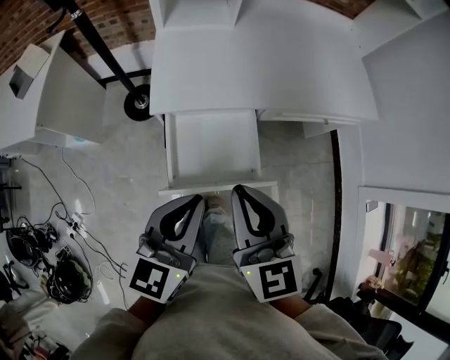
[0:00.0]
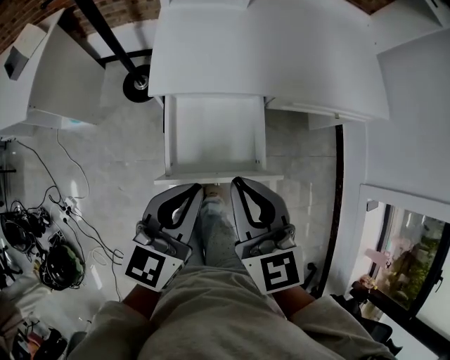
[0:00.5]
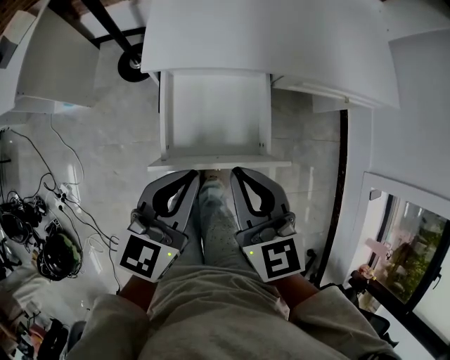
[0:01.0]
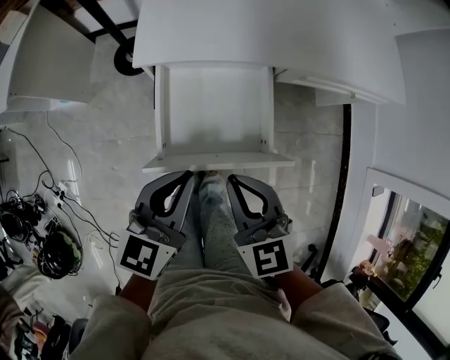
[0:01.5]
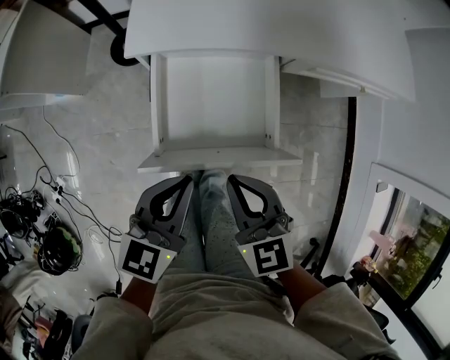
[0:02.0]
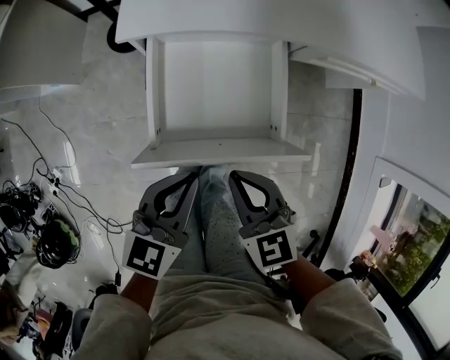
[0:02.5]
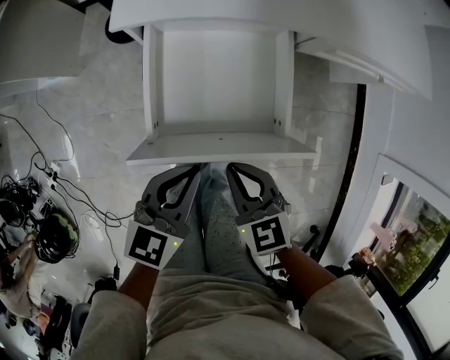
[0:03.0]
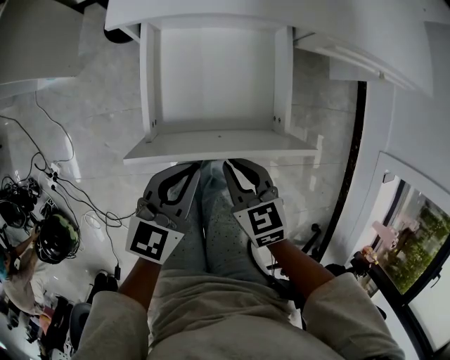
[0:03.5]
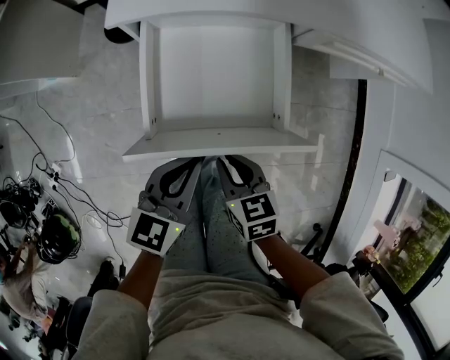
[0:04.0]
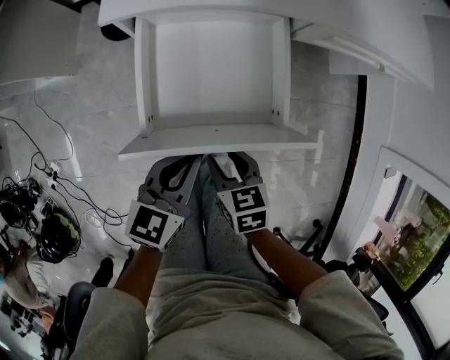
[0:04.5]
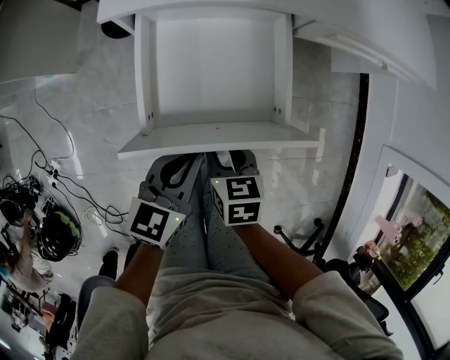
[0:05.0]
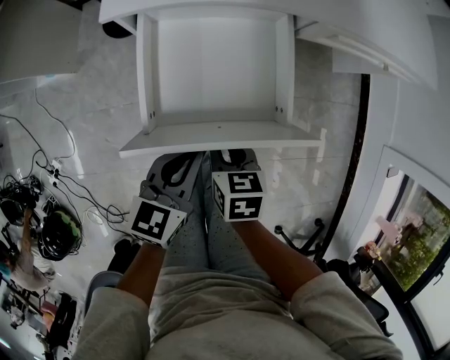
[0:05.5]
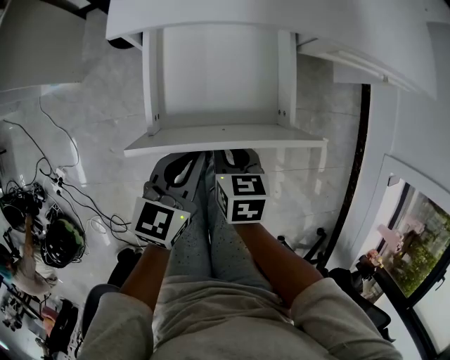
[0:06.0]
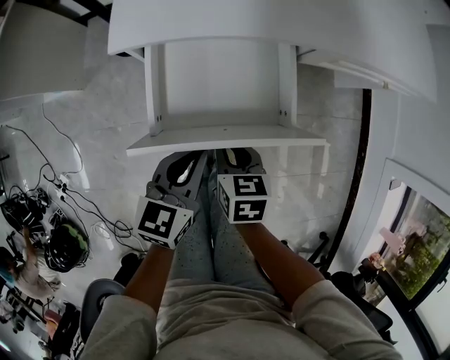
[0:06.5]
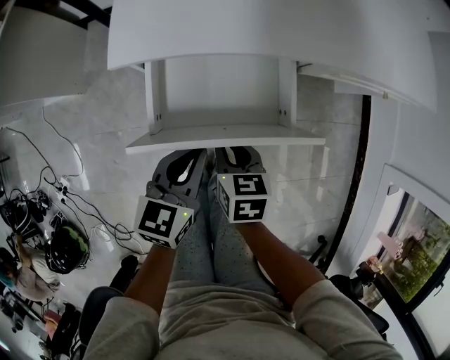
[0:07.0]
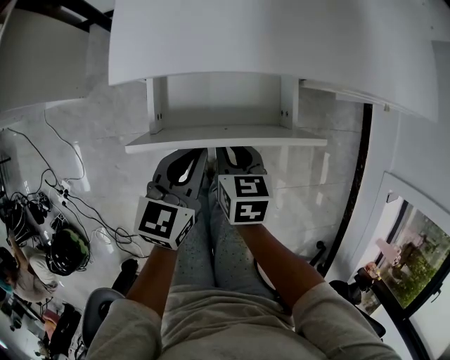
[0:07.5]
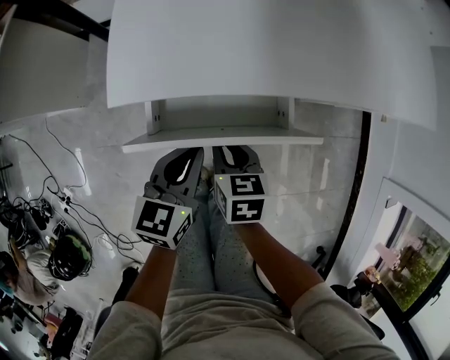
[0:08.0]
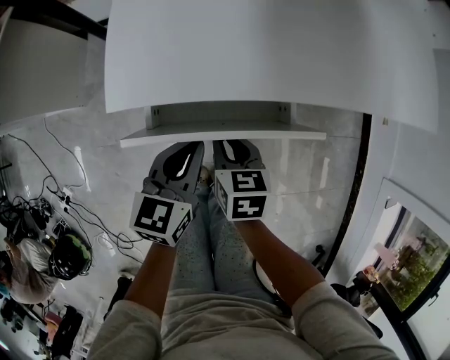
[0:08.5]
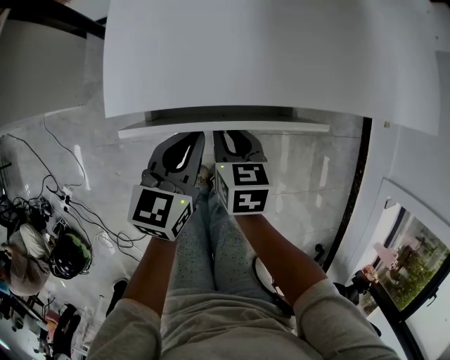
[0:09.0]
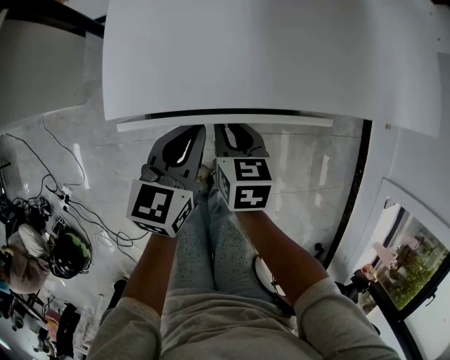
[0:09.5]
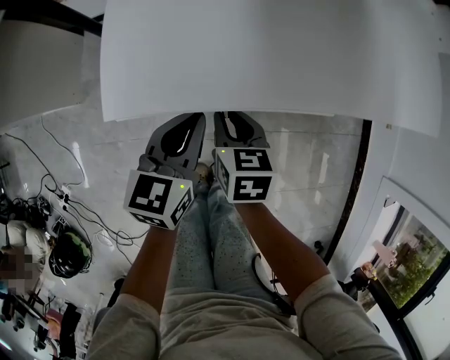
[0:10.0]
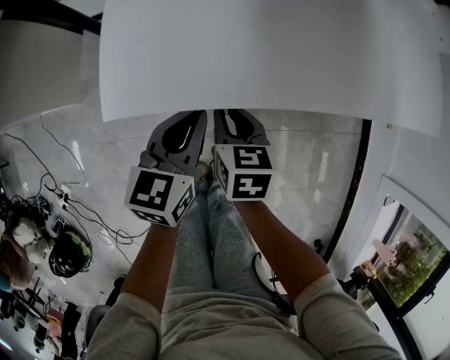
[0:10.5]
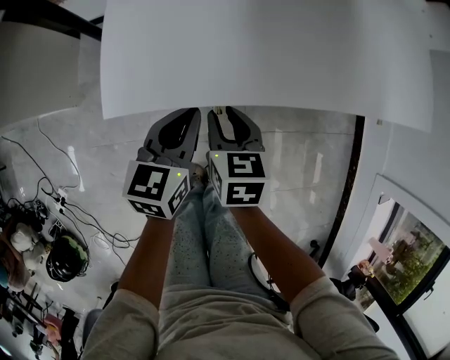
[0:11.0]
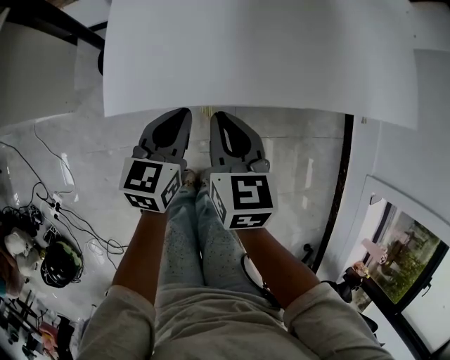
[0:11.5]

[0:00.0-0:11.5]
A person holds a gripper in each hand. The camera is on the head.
0:00.0 to 0:02.0: Both grippers move downward, about 20 cm. The right gripper changes its angle by approximately 30 degrees.
0:02.0 to 0:04.0: The left gripper is displaced downward by roughly 10 cm, while the right gripper is displaced downward by approximately 15 cm, and turns by some 30 degrees.
0:04.0 to 0:06.0: The right gripper is displaced forward by some 5 cm.
0:06.0 to 0:07.5: The two grippers go some 10 cm forward.
0:07.5 to 0:09.5: The two grippers go about 10 cm forward.
0:09.5 to 0:11.5: The right gripper is displaced upward by approximately 10 cm.

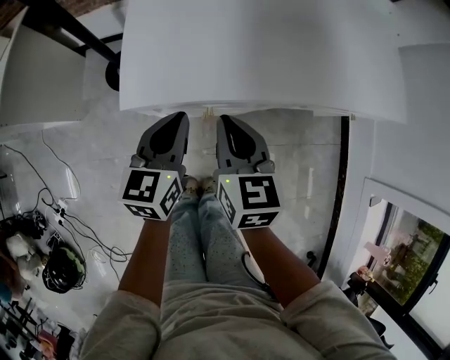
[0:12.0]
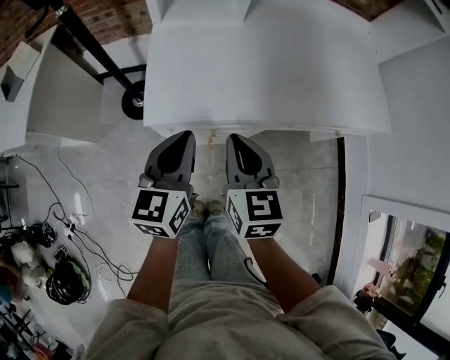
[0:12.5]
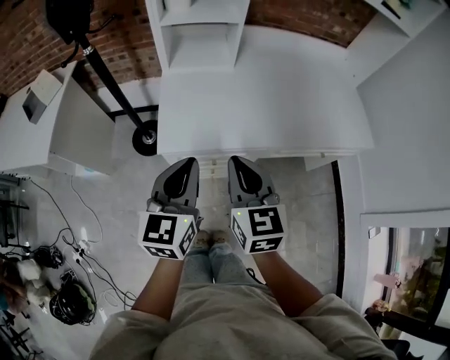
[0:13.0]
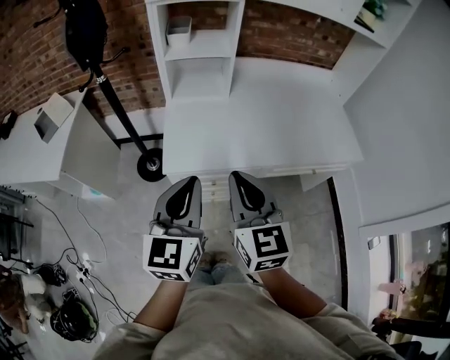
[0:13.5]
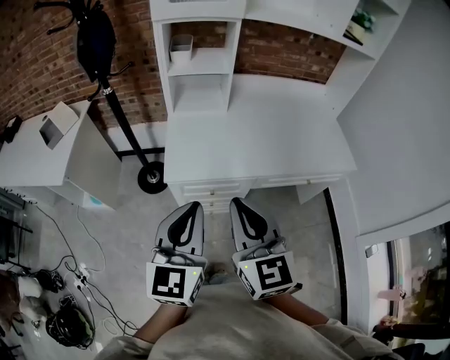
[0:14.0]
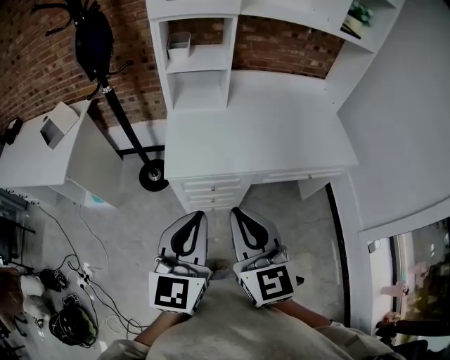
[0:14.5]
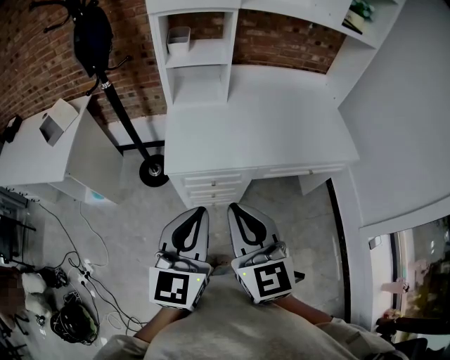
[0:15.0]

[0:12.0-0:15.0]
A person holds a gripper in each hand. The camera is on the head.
0:12.0 to 0:13.5: The right gripper shifts approximately 30 cm upward, and changes its angle by roughly 20 degrees; the left gripper travels upward and backward by about 35 cm, and turns by roughly 20 degrees.
0:13.5 to 0:15.0: The grippers both shift backward by about 10 cm.

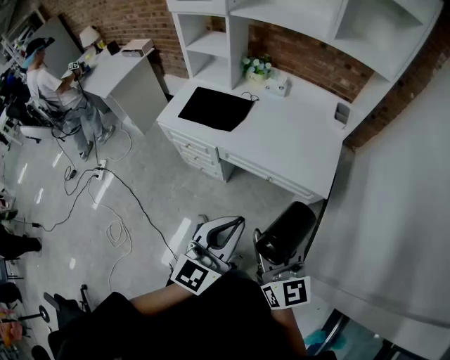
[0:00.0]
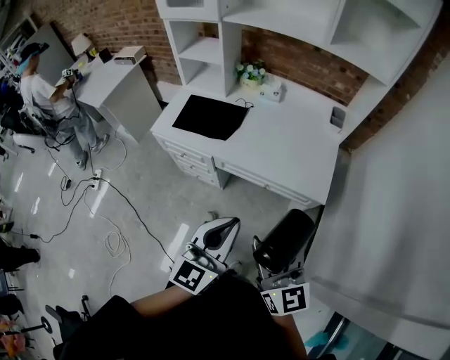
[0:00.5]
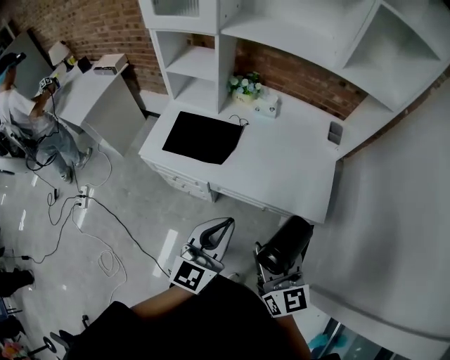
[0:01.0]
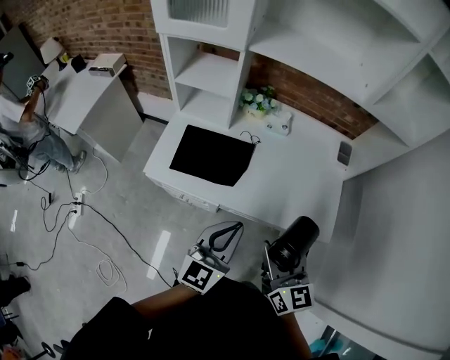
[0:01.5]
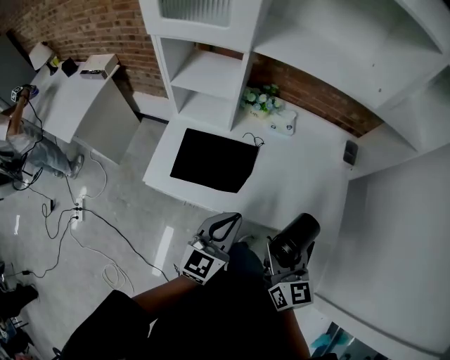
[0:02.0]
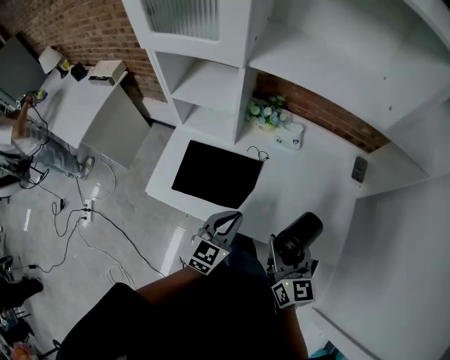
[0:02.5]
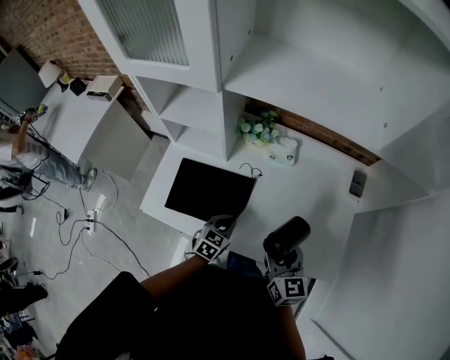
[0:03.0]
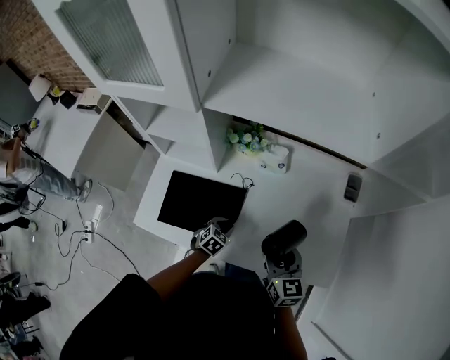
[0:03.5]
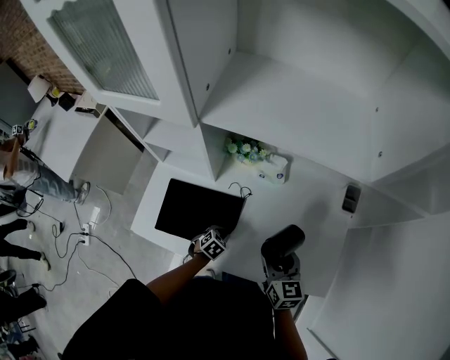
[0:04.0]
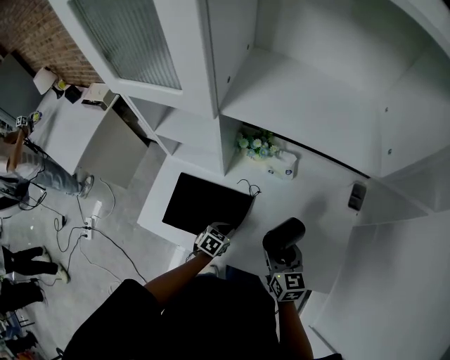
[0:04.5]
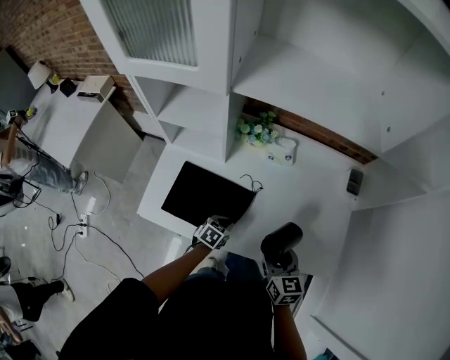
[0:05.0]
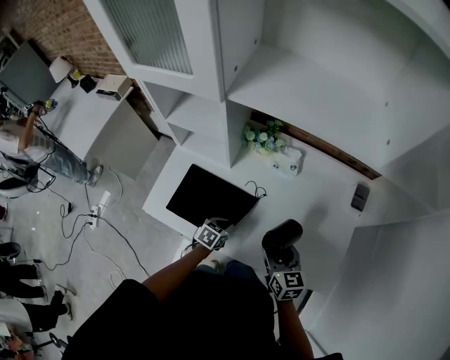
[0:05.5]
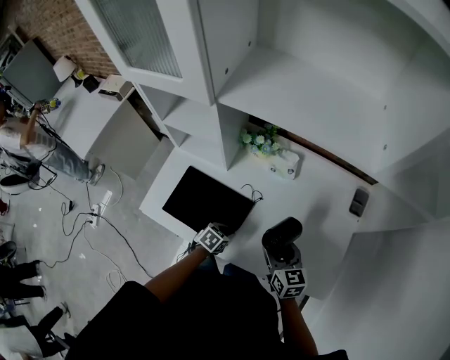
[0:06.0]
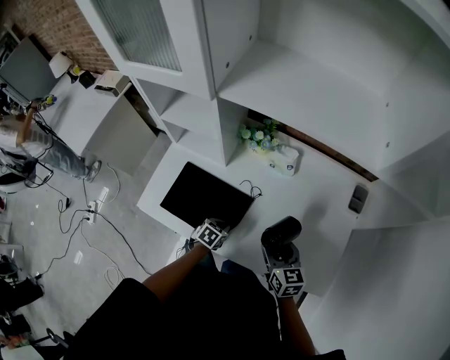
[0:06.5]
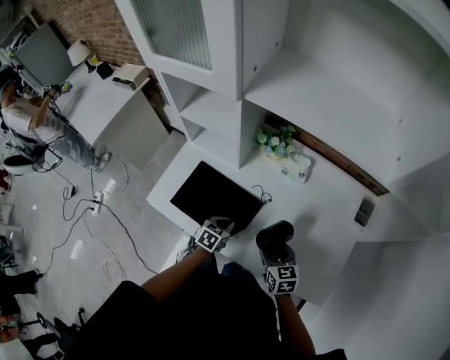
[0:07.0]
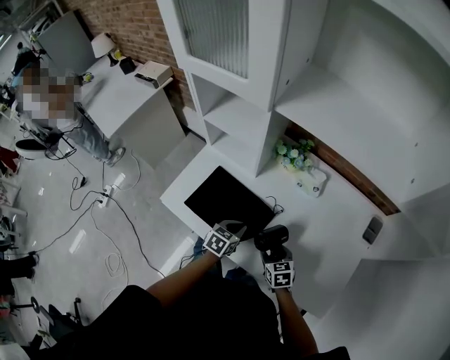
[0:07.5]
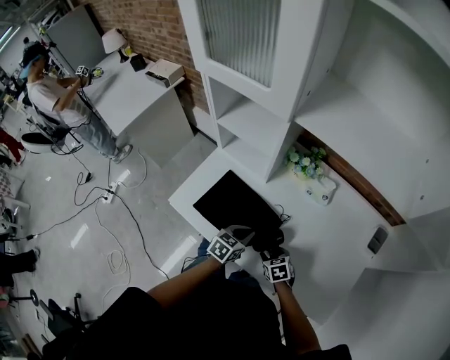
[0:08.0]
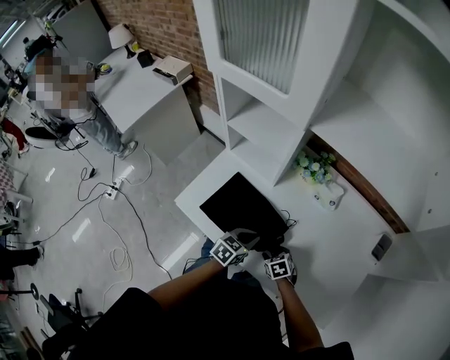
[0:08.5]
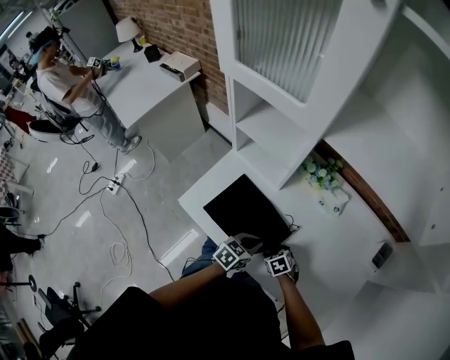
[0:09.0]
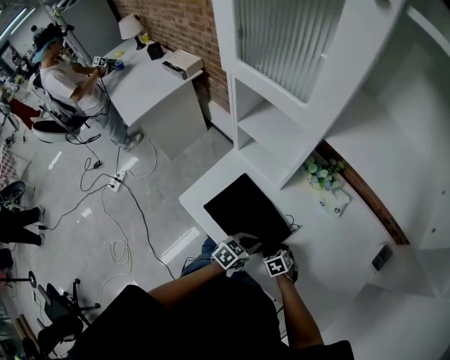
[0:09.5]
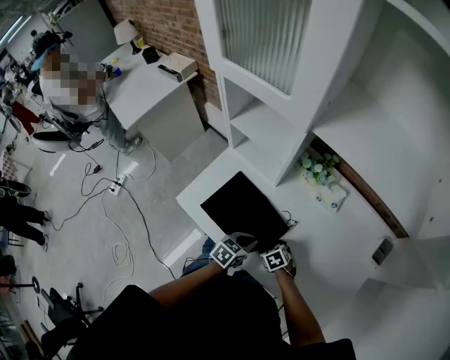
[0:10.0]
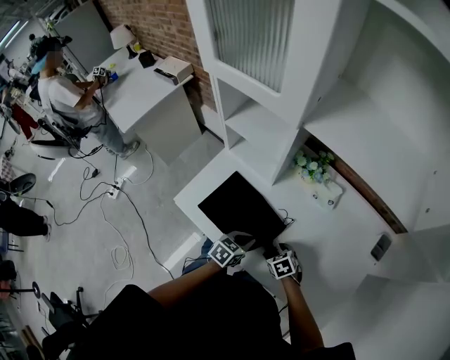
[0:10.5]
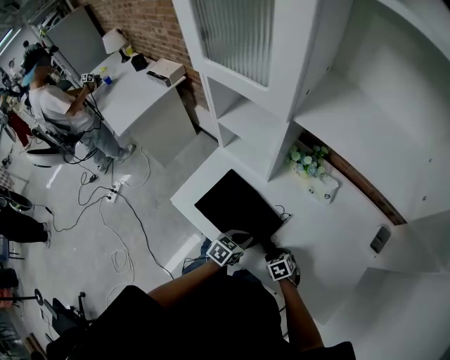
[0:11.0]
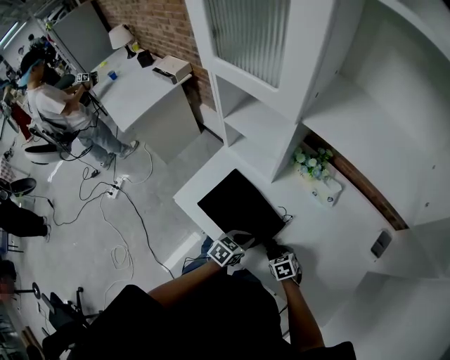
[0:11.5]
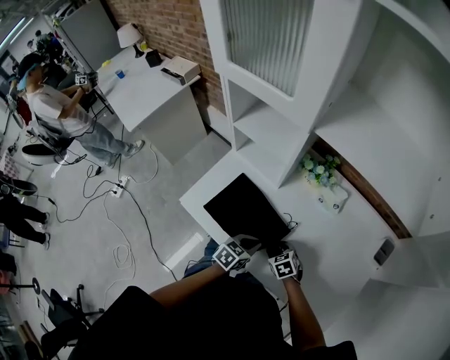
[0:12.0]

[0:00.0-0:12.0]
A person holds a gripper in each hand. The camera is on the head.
0:00.0 to 0:02.0: The grippers both shift forward and to the left by roughly 35 cm.
0:02.0 to 0:04.0: The left gripper moves downward and forward, about 40 cm, and angles its fingers downward, by approximately 50 degrees, while the right gripper heads forward and downward, covering roughly 25 cm.
0:04.0 to 0:06.0: The right gripper moves some 10 cm backward and comes back.
0:06.0 to 0:08.0: The right gripper moves downward and to the left, about 20 cm, and angles its fingers downward, by about 30 degrees, while the left gripper heads upward, covering about 10 cm, and turns by about 30 degrees.
0:08.0 to 0:10.0: The right gripper moves approximately 5 cm.
